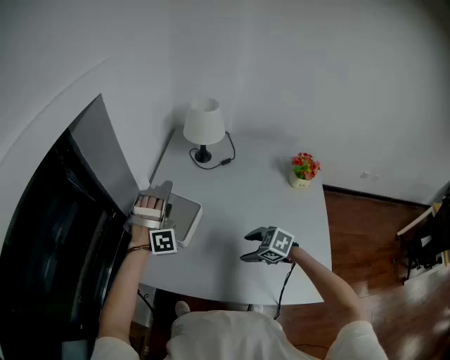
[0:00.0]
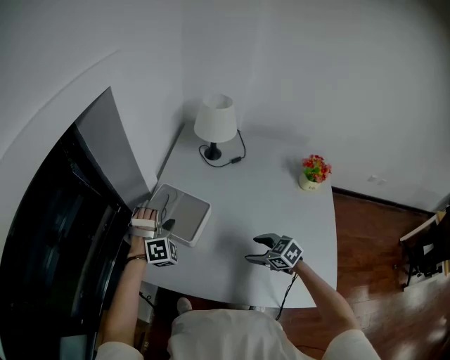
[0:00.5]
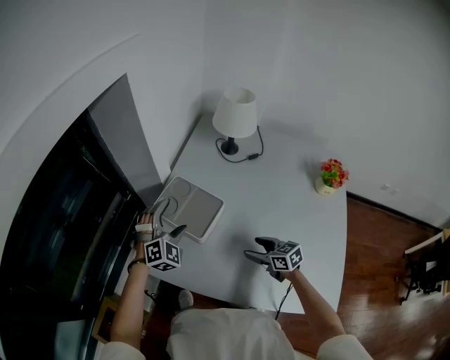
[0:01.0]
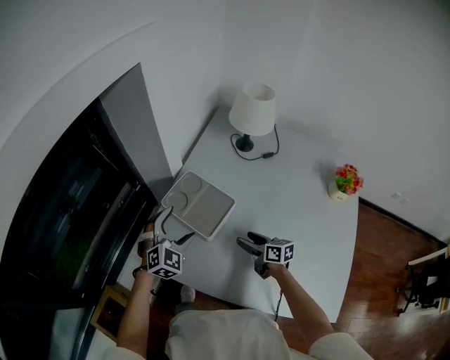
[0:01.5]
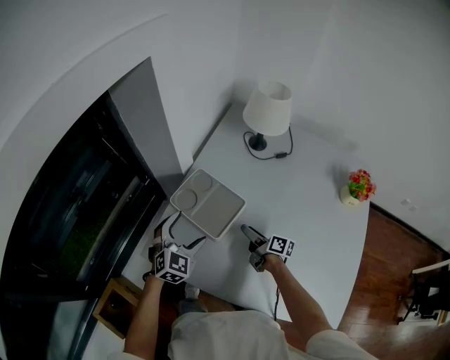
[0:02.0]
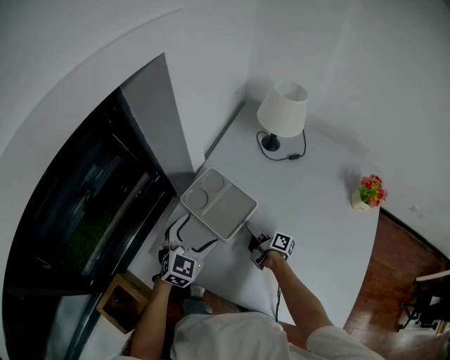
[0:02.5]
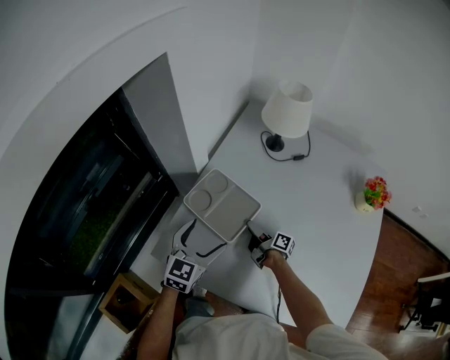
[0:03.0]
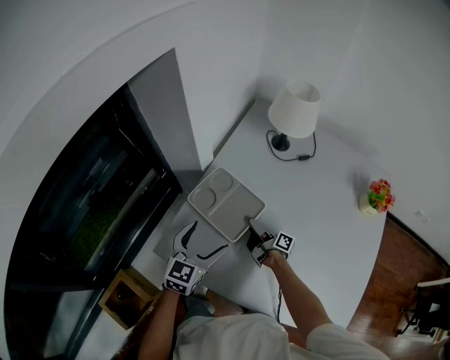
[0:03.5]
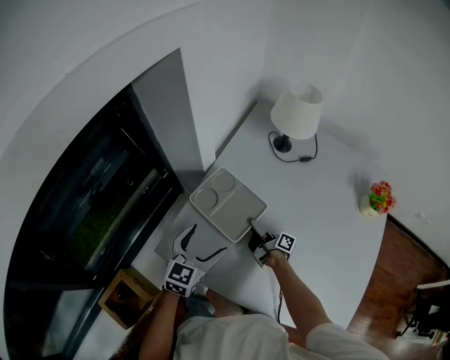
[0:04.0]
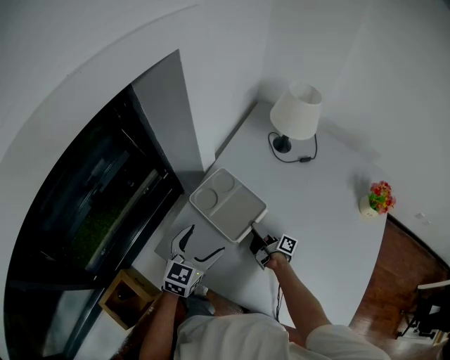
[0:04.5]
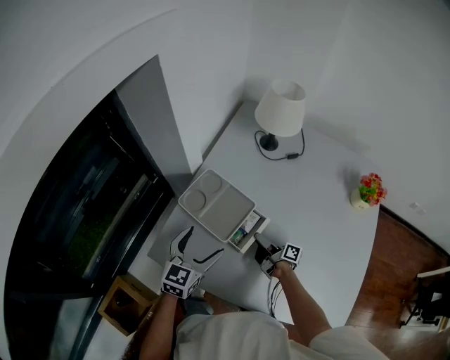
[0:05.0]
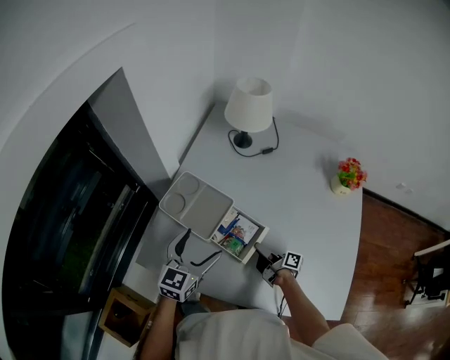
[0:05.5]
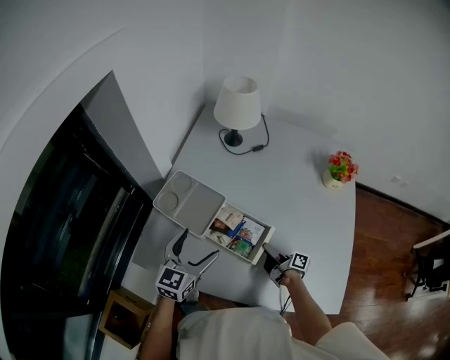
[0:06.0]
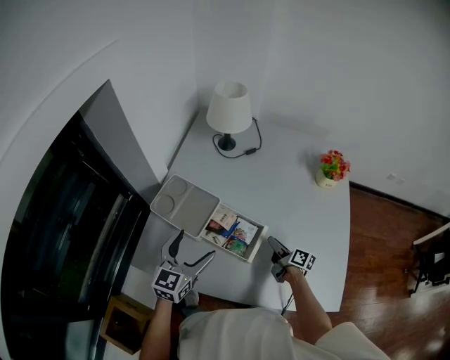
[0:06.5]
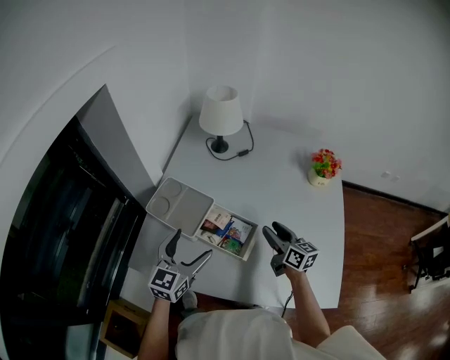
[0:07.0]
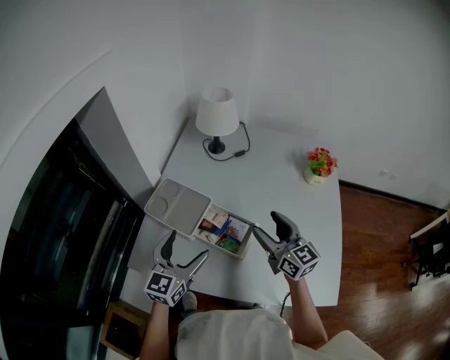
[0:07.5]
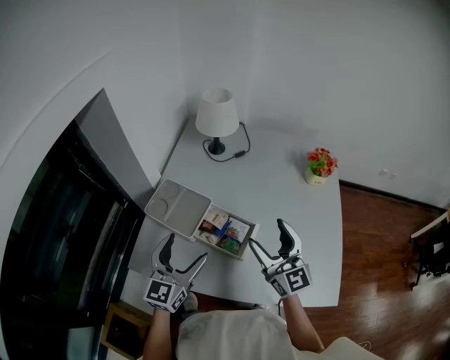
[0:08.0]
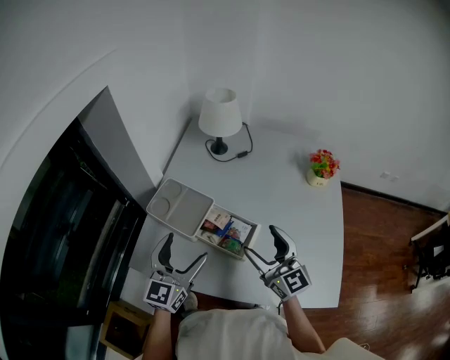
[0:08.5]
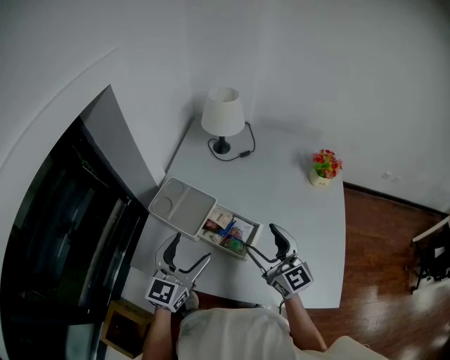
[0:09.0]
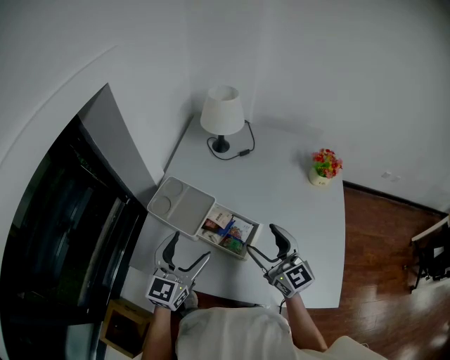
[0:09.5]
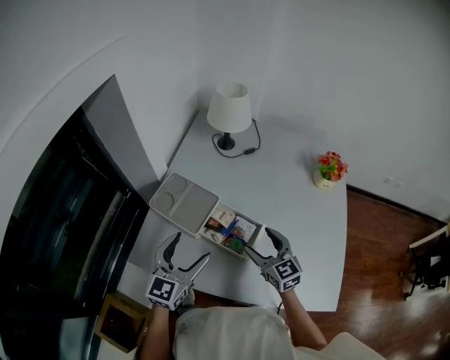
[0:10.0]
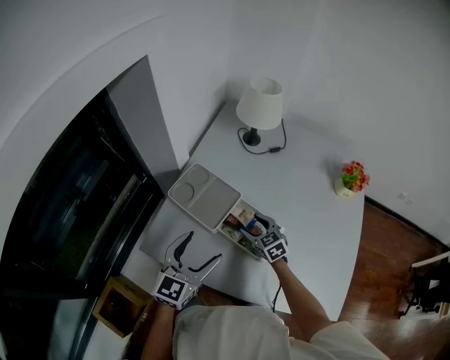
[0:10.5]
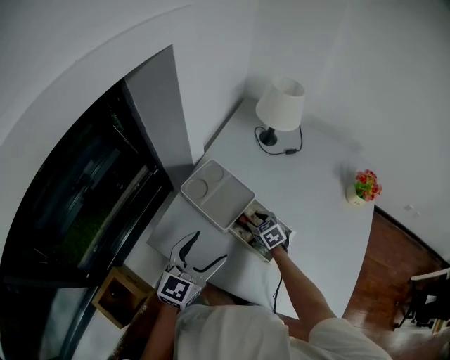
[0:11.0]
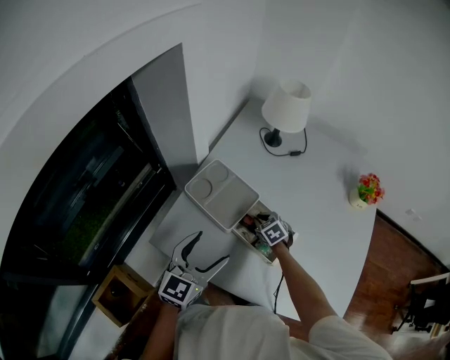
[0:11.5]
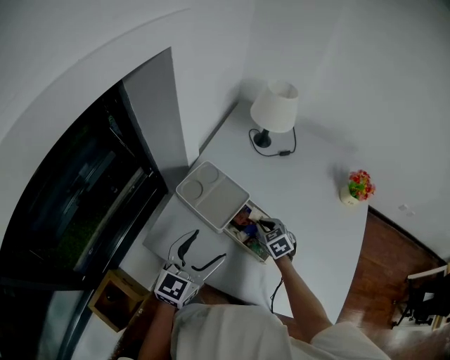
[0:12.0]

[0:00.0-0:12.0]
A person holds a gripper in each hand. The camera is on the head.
0:00.0 to 0:02.0: The right gripper moves forward and downward, about 20 cm, and points its fingers approximately 40 degrees further upward. Meanwhile the left gripper heads downward and to the left, covering about 15 cm, and twists roughly 70 degrees counterclockwise, seen from behind.
0:02.0 to 0:04.0: The right gripper moves approximately 5 cm, and rotates approximately 20 degrees. Meanwhile the left gripper turns by about 30 degrees.
0:04.0 to 0:06.0: The right gripper goes approximately 25 cm to the right and backward. The left gripper shifts approximately 10 cm to the right.
0:06.0 to 0:08.0: The left gripper goes roughly 10 cm upward, while the right gripper heads upward, covering roughly 30 cm, rolls counterclockwise, seen from behind, by about 90 degrees, and opens.
0:08.0 to 0:10.0: The right gripper shifts approximately 15 cm downward, and swivels some 30 degrees.
0:10.0 to 0:12.0: The right gripper travels downward and forward by some 15 cm, tilts its fingers about 30 degrees downward, and closes its fingers.

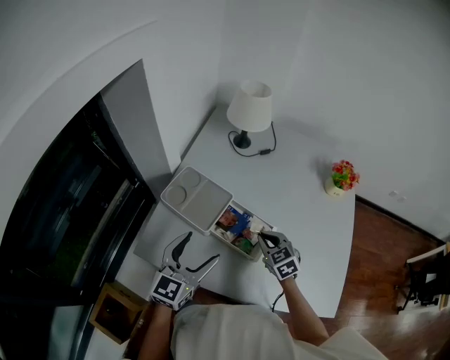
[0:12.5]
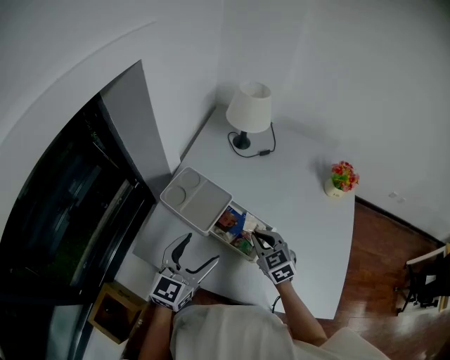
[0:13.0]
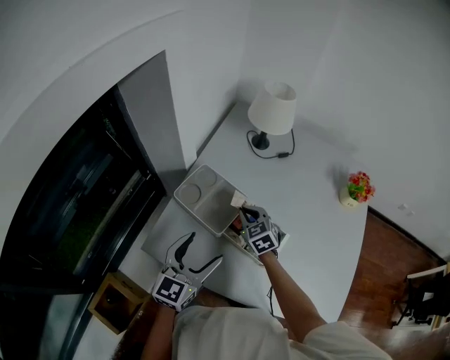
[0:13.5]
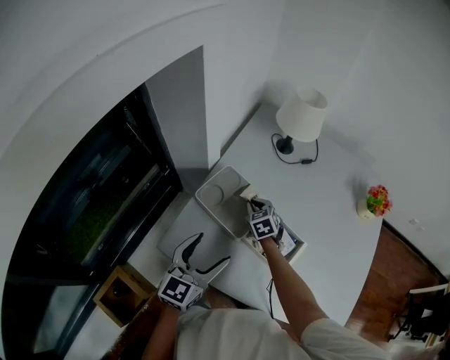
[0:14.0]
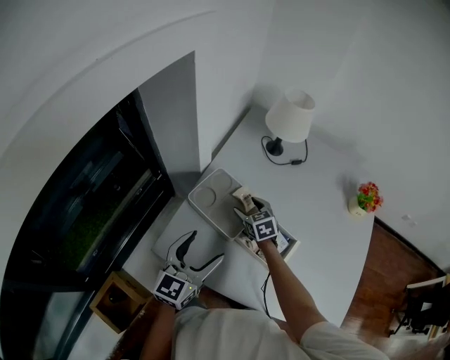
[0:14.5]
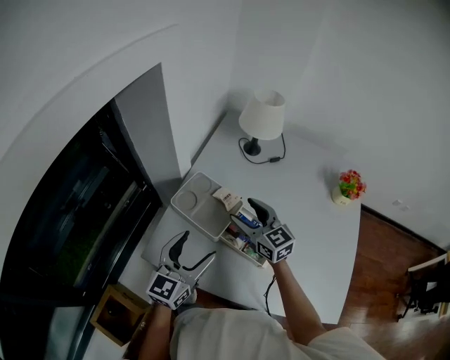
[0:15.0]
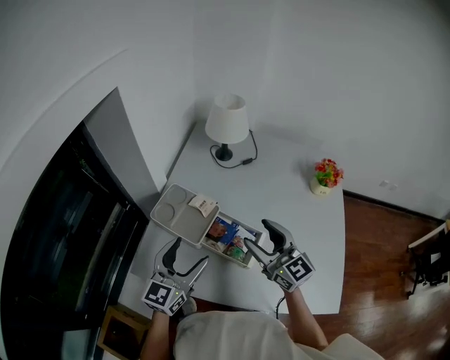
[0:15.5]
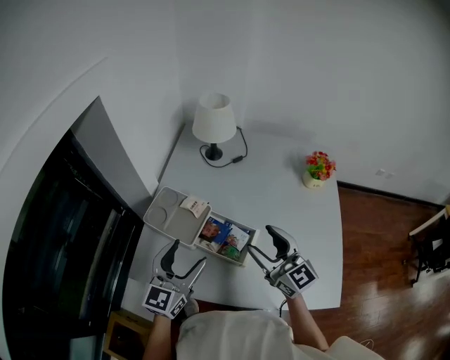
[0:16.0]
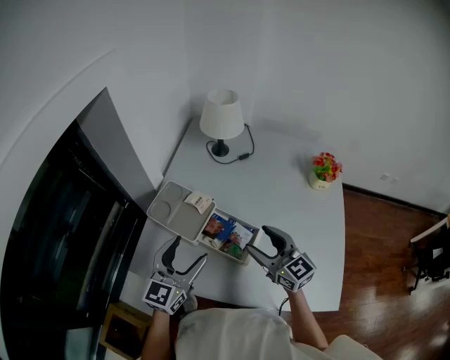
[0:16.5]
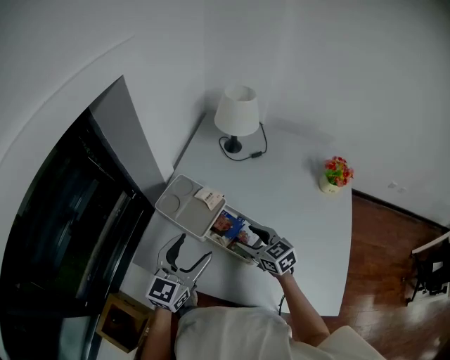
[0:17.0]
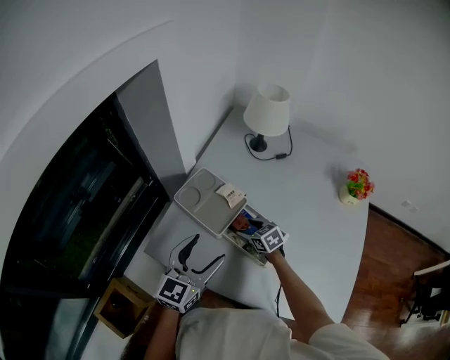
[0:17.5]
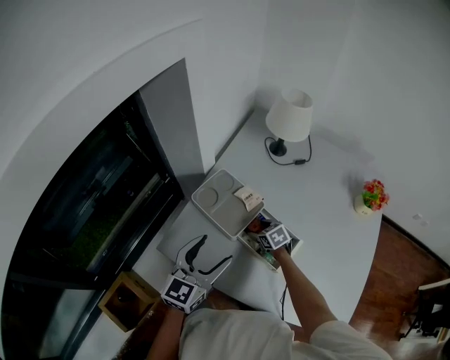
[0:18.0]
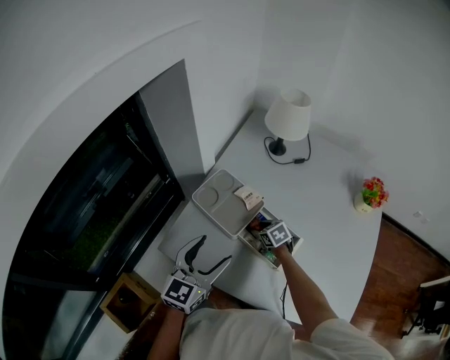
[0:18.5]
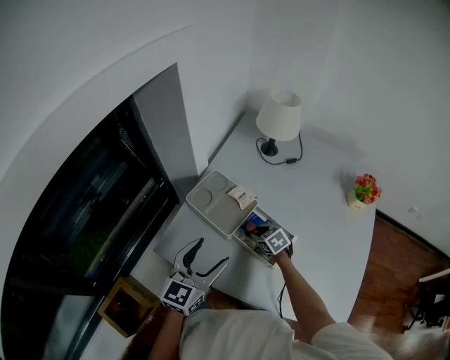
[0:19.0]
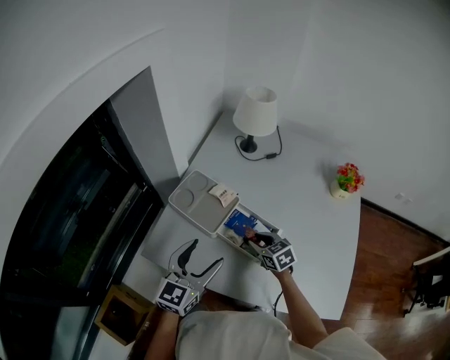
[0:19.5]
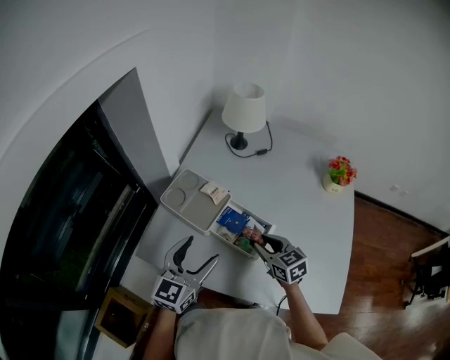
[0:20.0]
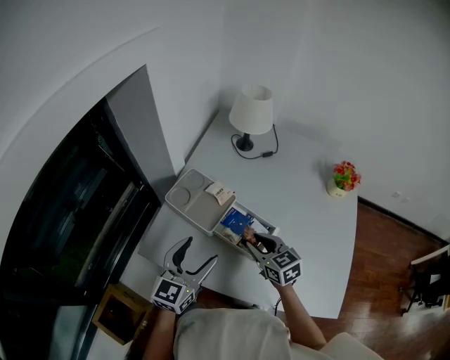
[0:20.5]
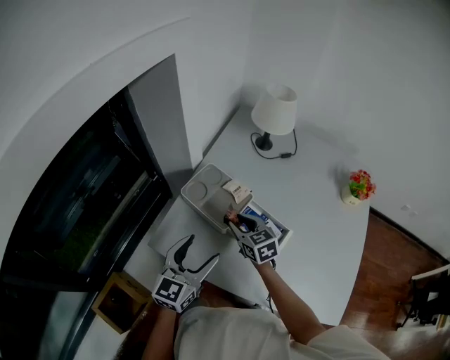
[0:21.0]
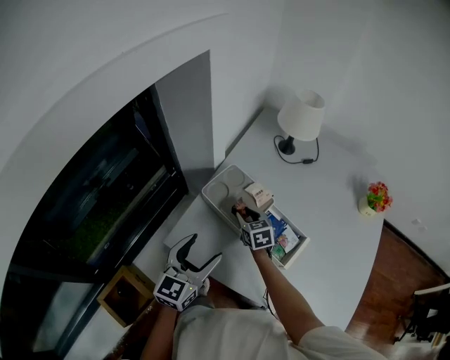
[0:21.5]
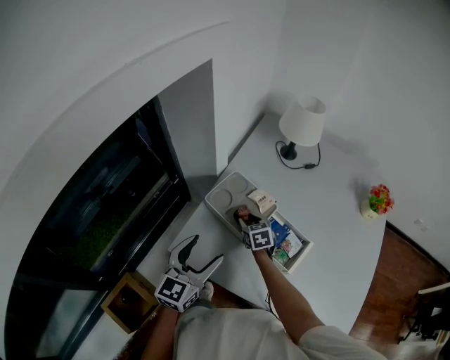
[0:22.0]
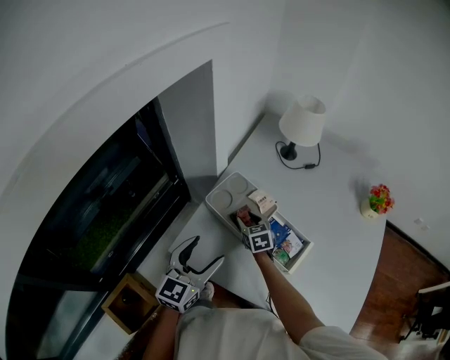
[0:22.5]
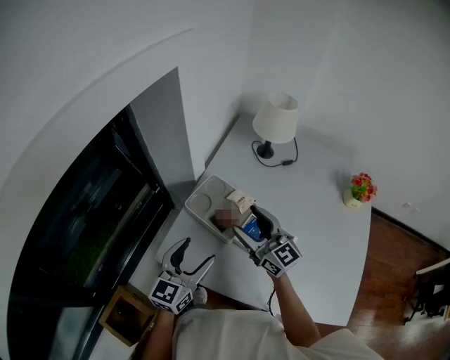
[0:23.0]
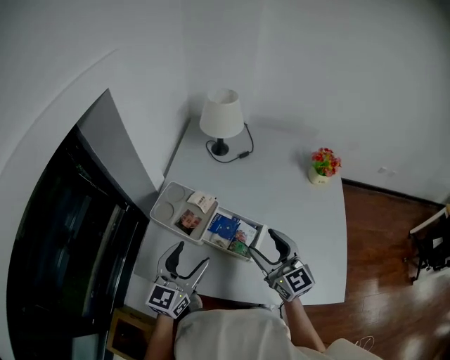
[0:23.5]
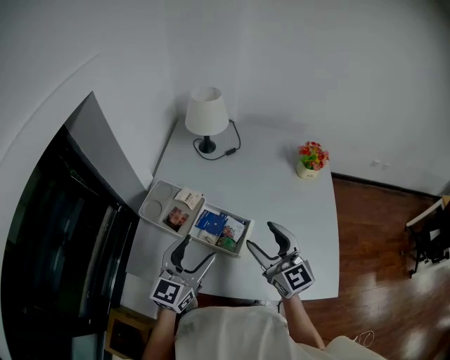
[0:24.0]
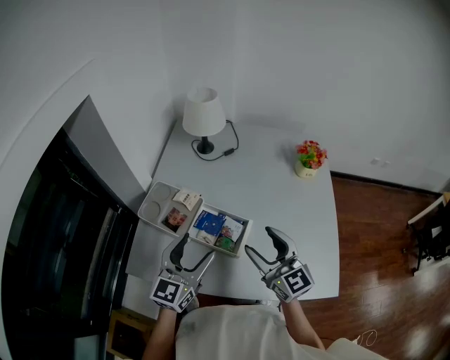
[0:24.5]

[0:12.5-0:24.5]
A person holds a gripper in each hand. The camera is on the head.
0:12.5 to 0:14.5: The right gripper travels to the left and forward by some 25 cm, and opens up; the left gripper shifts some 10 cm to the left.
0:14.5 to 0:16.5: The right gripper heads backward, upward and to the right, covering some 30 cm, and tips its fingers upward by about 30 degrees. Meanwhile the left gripper heads to the right, covering roughly 10 cm.
0:16.5 to 0:18.5: The right gripper goes some 30 cm downward and forward, and tips its fingers downward by some 50 degrees. Meanwhile the left gripper shifts some 5 cm to the left.
0:18.5 to 0:20.5: The right gripper goes some 20 cm upward and backward, and turns by some 30 degrees.
0:20.5 to 0:22.5: The right gripper heads forward, to the left and downward, covering approximately 25 cm. The left gripper moves to the left, some 10 cm.
0:22.5 to 0:24.5: The right gripper travels to the right, upward and backward by approximately 40 cm, and points its fingers some 40 degrees further upward, while the left gripper heads to the right, covering some 20 cm.

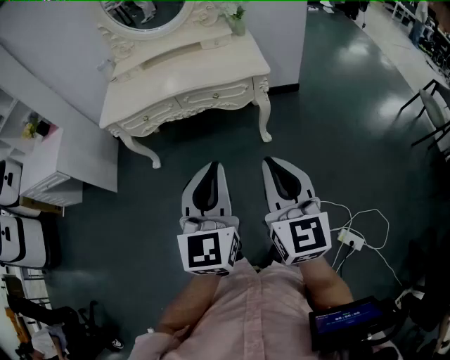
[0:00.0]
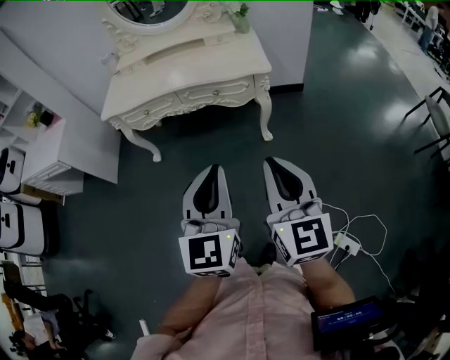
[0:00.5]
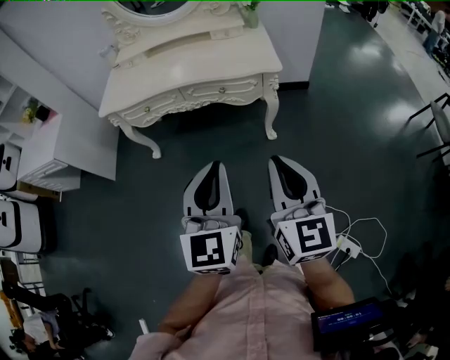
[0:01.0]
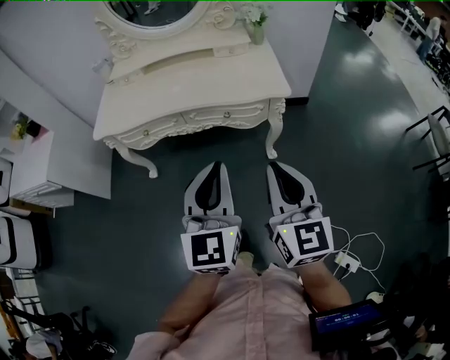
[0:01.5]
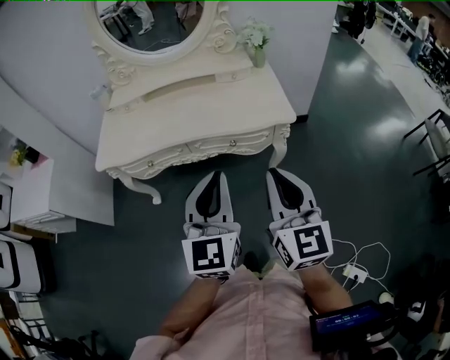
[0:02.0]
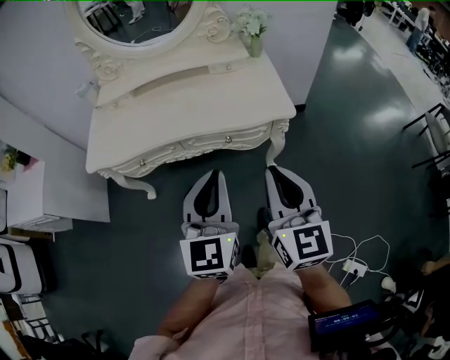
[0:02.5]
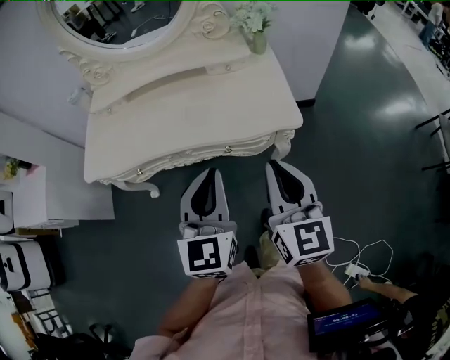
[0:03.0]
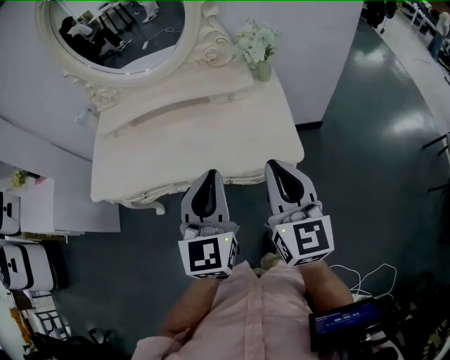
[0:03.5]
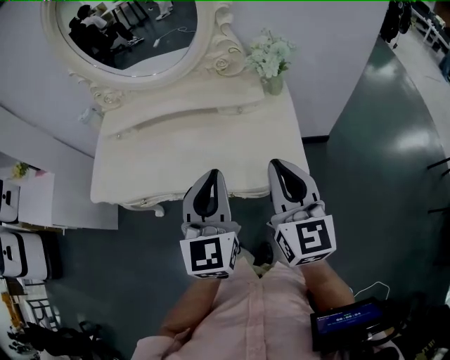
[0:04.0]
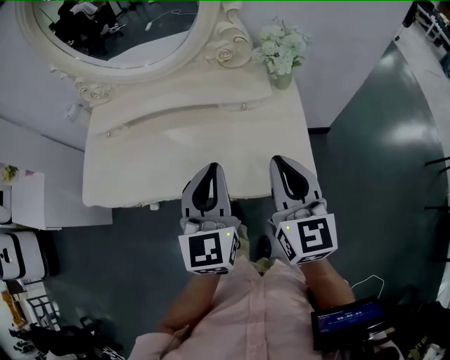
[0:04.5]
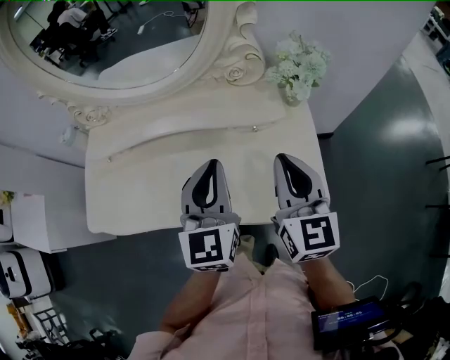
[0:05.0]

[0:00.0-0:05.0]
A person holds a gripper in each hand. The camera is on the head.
0:00.0 to 0:02.5: Both grippers move forward, approximately 30 cm.
0:02.5 to 0:05.0: Both grippers are carried forward, approximately 40 cm.
